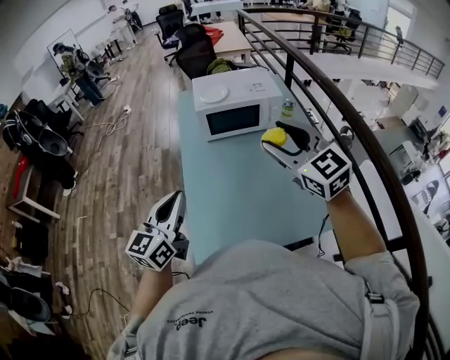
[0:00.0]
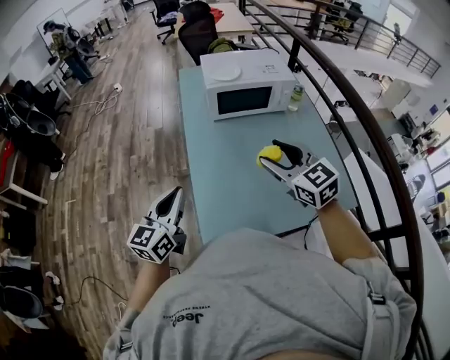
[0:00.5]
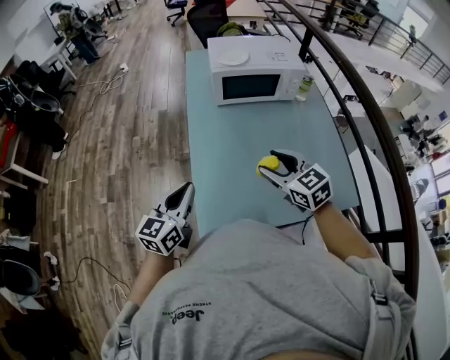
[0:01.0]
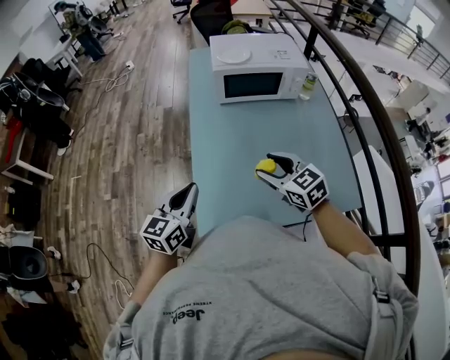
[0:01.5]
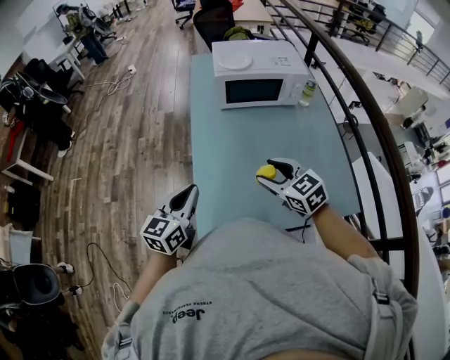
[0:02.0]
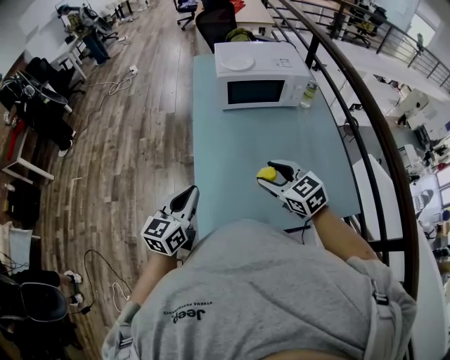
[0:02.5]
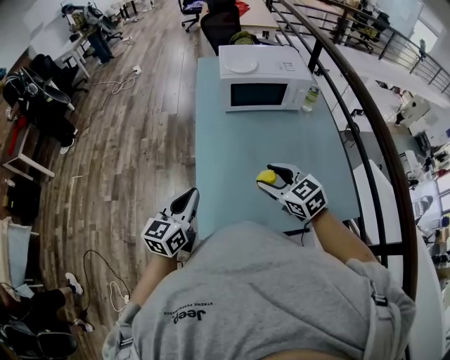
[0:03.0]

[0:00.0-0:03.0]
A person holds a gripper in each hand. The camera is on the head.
0:00.0 to 0:01.5: The right gripper shifts roughly 25 cm downward and to the left, and changes its angle by some 30 degrees; the left gripper travels downward by some 10 cm.
0:01.5 to 0:03.0: There are only small adjustments of the grippers.

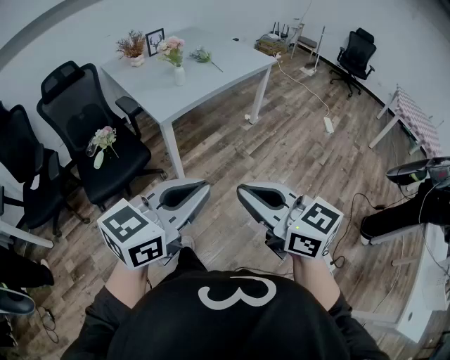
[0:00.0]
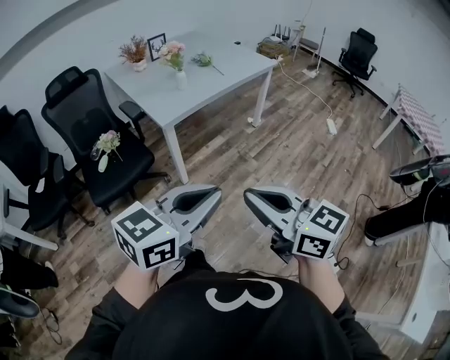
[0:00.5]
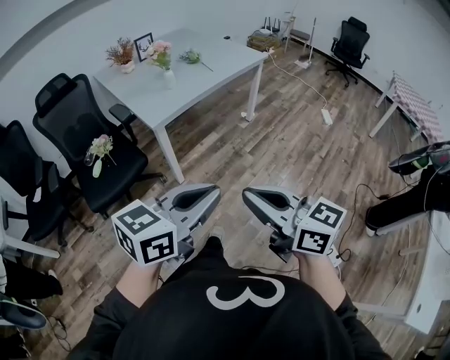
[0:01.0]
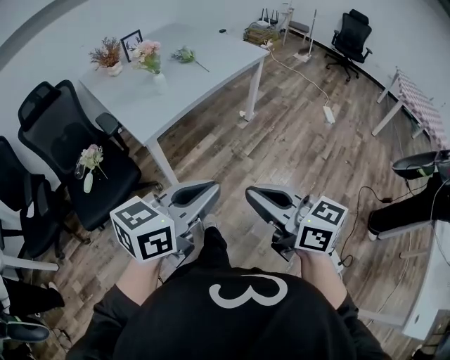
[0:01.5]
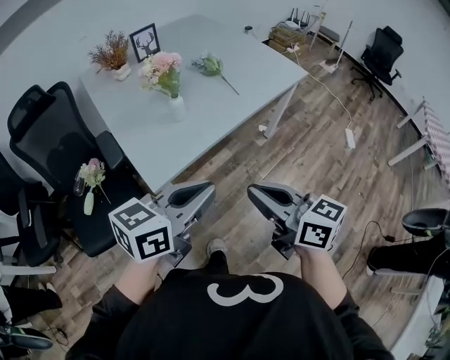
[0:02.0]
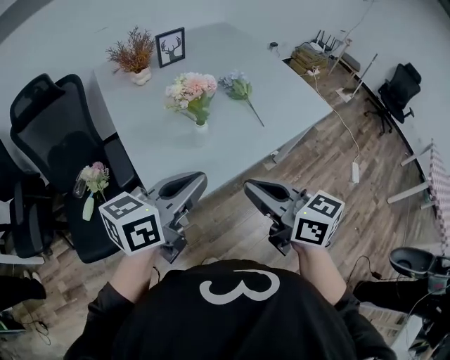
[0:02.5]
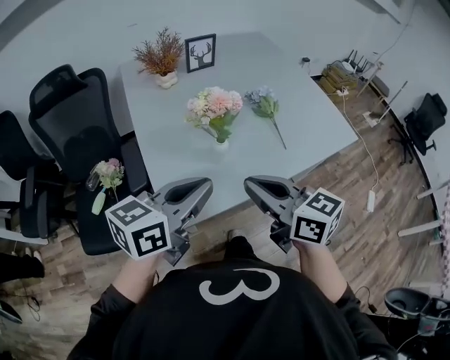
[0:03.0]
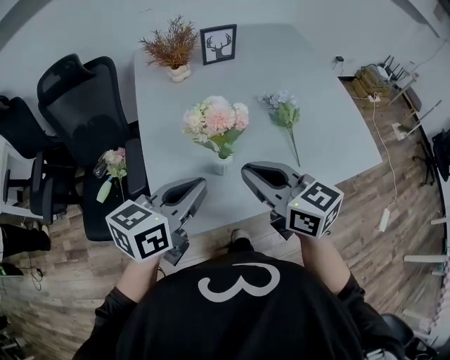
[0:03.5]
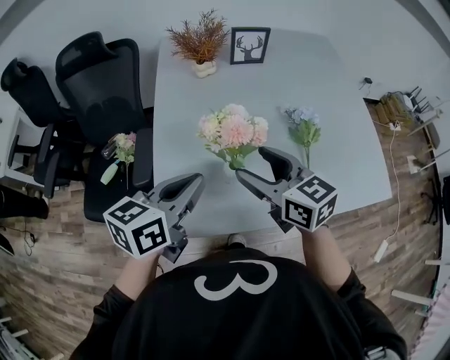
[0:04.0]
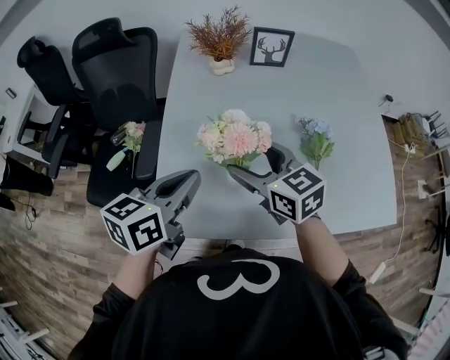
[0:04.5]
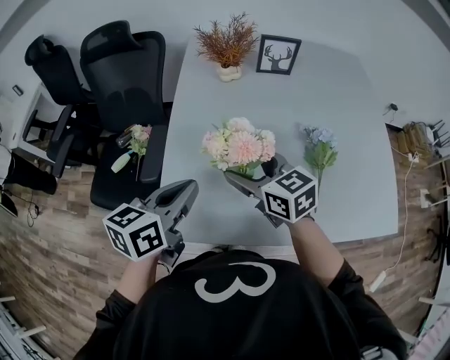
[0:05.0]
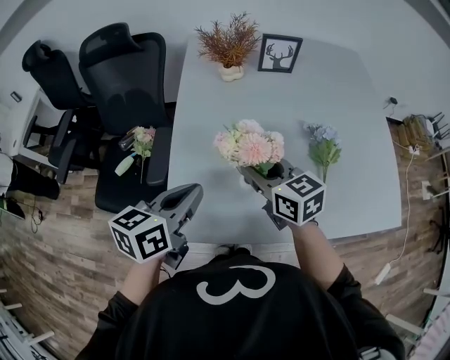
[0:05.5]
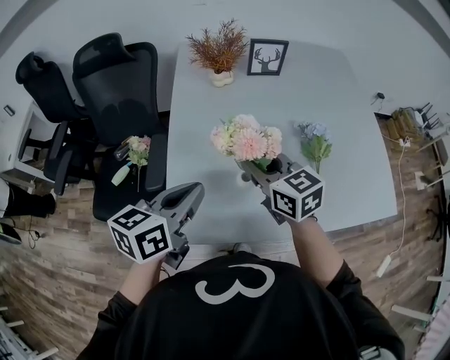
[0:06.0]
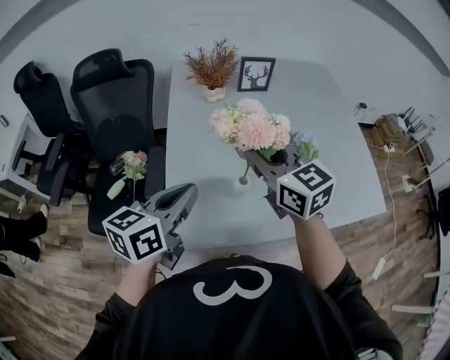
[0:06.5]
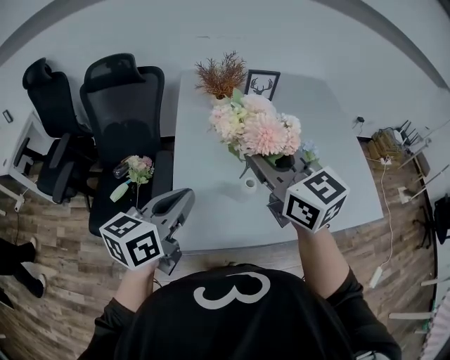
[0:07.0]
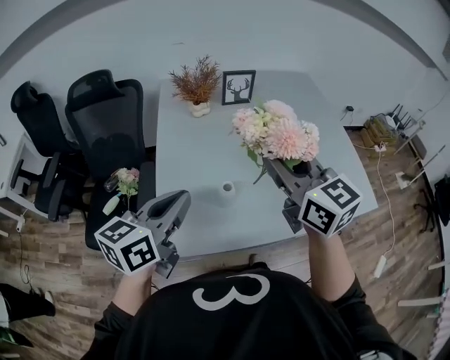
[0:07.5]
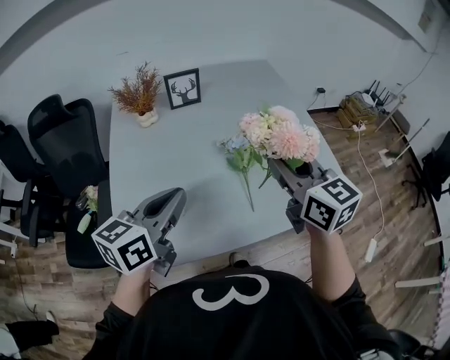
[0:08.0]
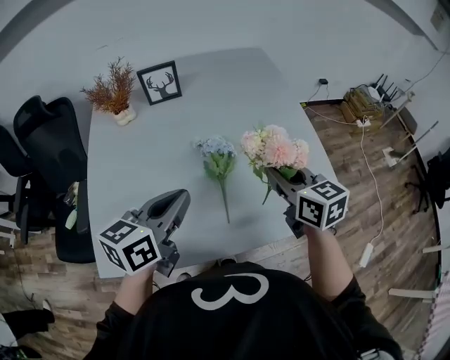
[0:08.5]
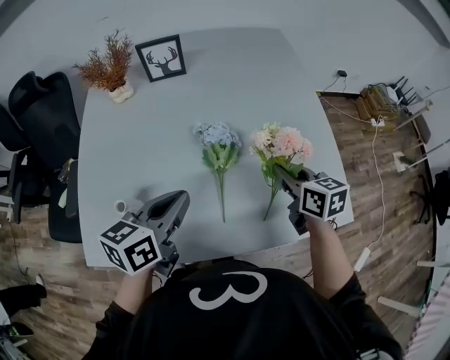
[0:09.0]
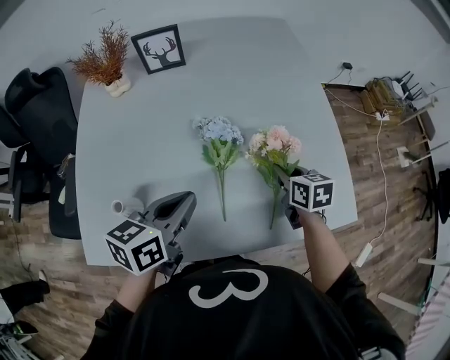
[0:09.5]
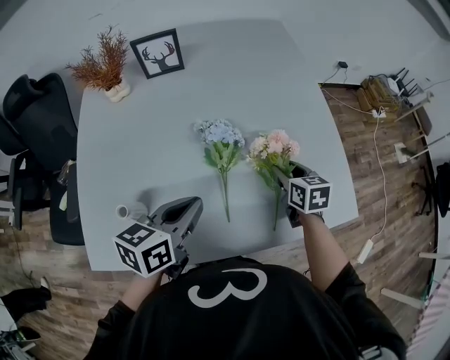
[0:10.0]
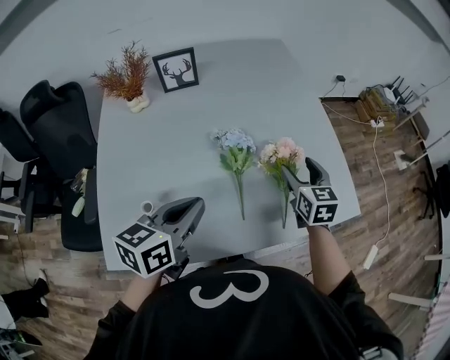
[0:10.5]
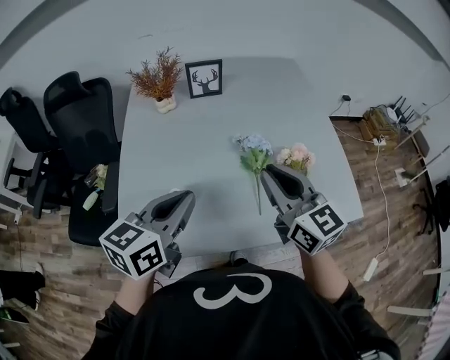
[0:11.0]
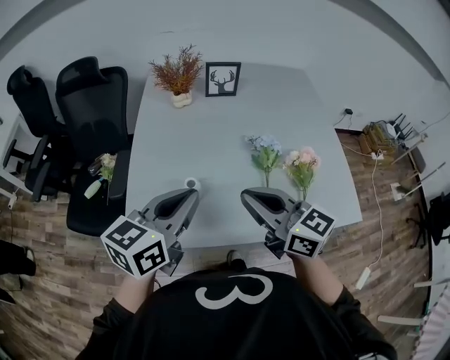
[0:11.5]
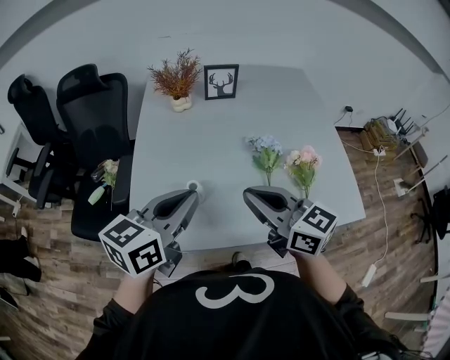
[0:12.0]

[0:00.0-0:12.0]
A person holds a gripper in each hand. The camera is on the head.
0:00.0 to 0:02.0: The pair of grippers is taken forward, roughly 40 cm.
0:02.0 to 0:04.0: The right gripper changes place by roughly 40 cm, turns by some 40 degrees, and opens its fingers. The left gripper ends up roughly 30 cm from where it was, and changes its angle by roughly 50 degrees.
0:04.0 to 0:06.0: The right gripper changes place by approximately 5 cm, and closes up.
0:06.0 to 0:08.0: The right gripper moves to the right and upward, approximately 30 cm, and swivels roughly 20 degrees; the left gripper heads to the right, covering approximately 15 cm.
0:08.0 to 0:10.0: The right gripper heads downward, to the right and forward, covering approximately 35 cm, and points its fingers about 30 degrees further downward. Meanwhile the left gripper moves downward, to the right and forward, roughly 20 cm.
0:10.0 to 0:12.0: The right gripper shifts by approximately 40 cm, tips its fingers upward by roughly 40 degrees, and closes up. The left gripper ends up roughly 25 cm from where it was.

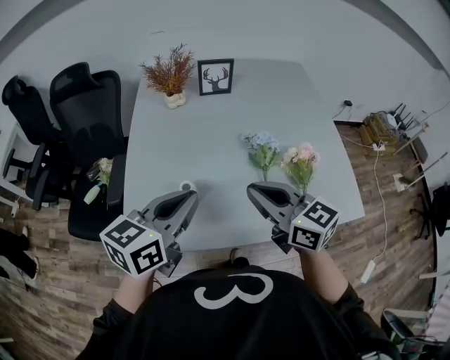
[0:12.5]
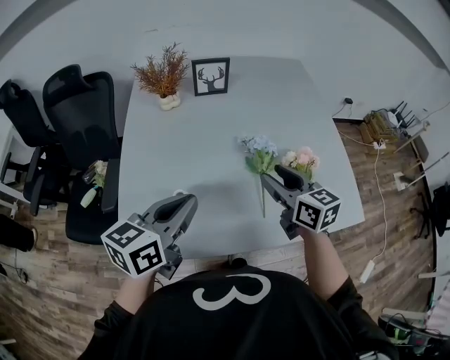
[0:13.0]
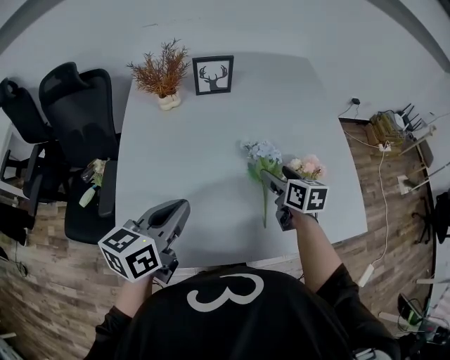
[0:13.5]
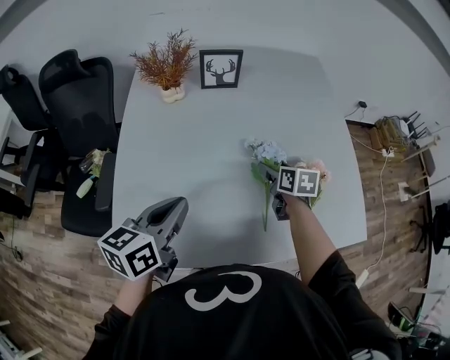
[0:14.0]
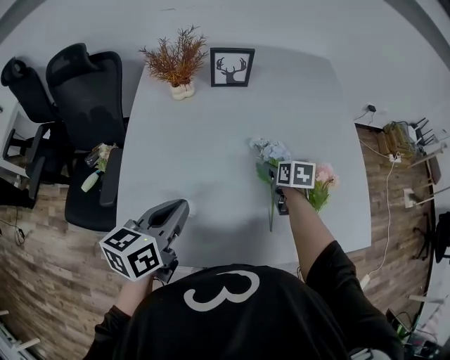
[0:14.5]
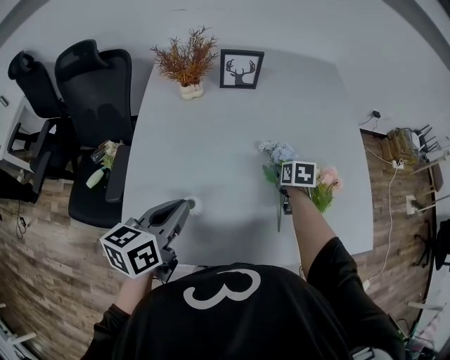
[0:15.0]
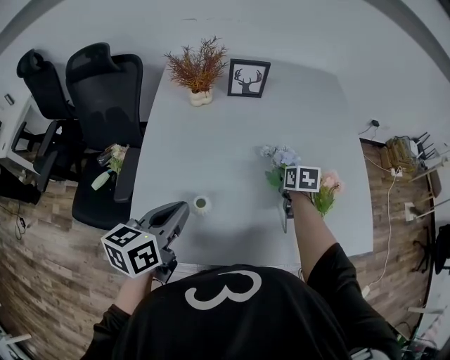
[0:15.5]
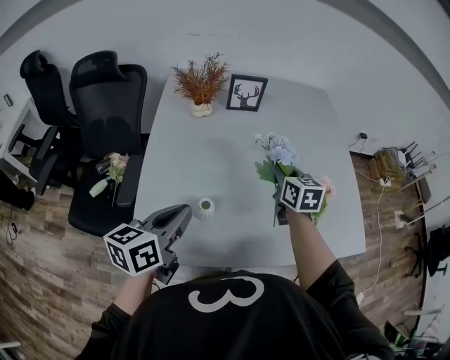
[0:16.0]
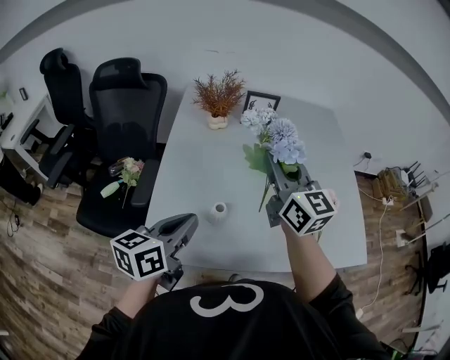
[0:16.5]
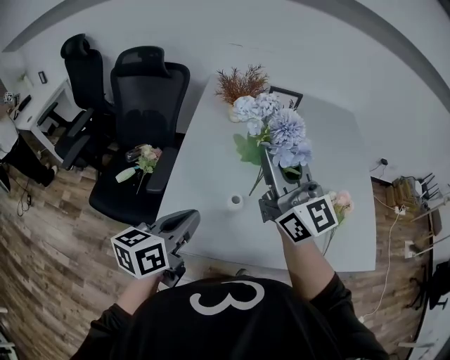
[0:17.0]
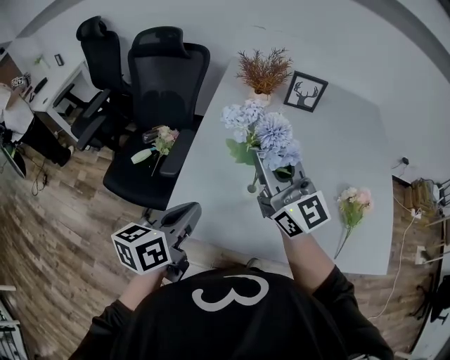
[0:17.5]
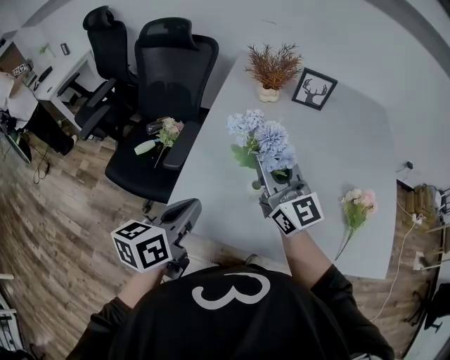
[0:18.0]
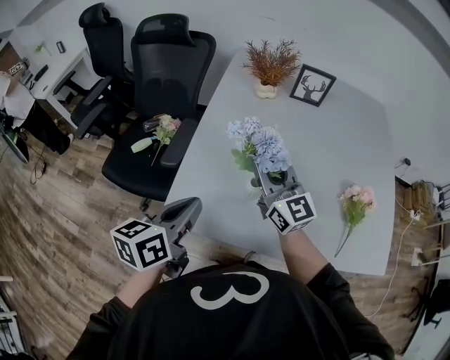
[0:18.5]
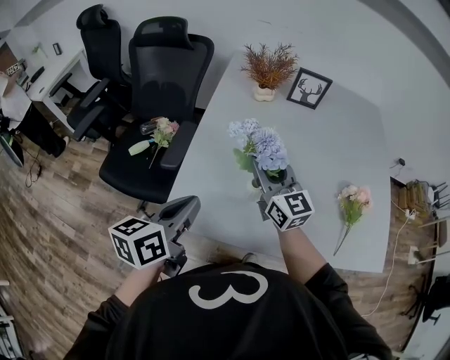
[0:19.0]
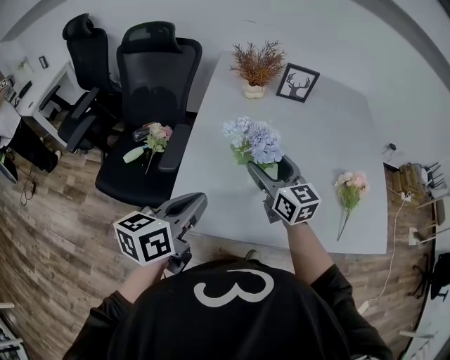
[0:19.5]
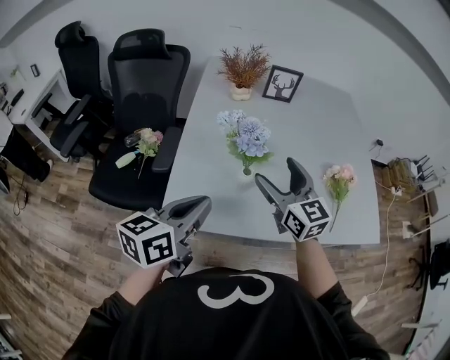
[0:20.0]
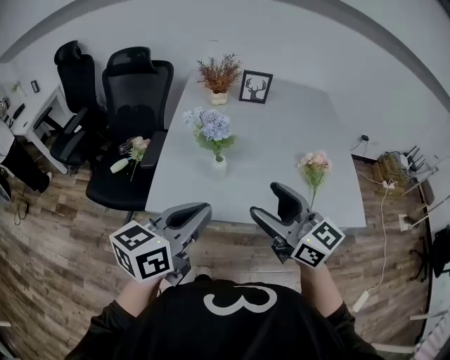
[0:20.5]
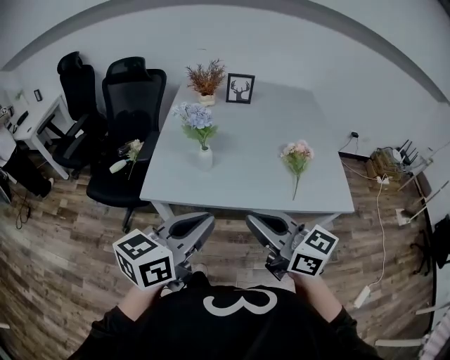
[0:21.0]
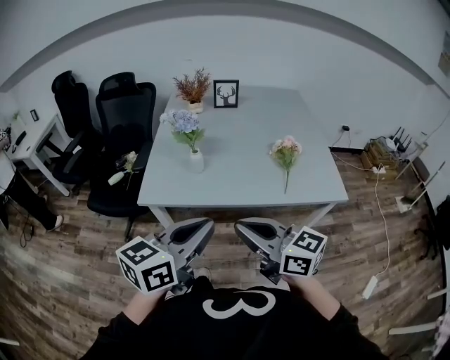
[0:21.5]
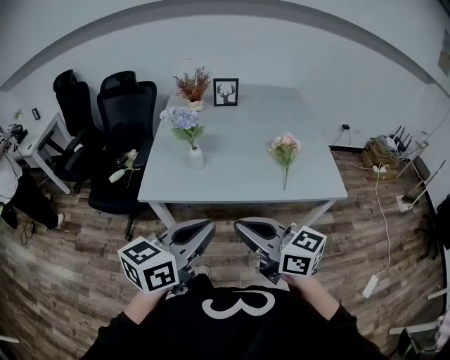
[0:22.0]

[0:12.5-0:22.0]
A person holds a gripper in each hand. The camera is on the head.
0:12.5 to 0:14.5: The left gripper travels downward and forward by about 10 cm; the right gripper heads downward, forward and to the right, covering some 35 cm, tilts its fingers about 40 degrees downward, and opens up.
0:14.5 to 0:16.5: The left gripper travels backward and to the left by some 10 cm; the right gripper is displaced upward and to the left by some 40 cm, angles its fingers upward, by roughly 60 degrees, and closes its fingers.
0:16.5 to 0:18.0: The right gripper moves to the left and downward, roughly 15 cm, and turns by roughly 20 degrees, while the left gripper moves to the left, roughly 5 cm.
0:18.0 to 0:20.0: The right gripper heads to the right and backward, covering roughly 10 cm, changes its angle by roughly 20 degrees, and opens.
0:20.0 to 0:22.0: The left gripper goes about 30 cm backward and to the right. Meanwhile the right gripper moves backward, roughly 35 cm, swivels approximately 30 degrees, and closes.

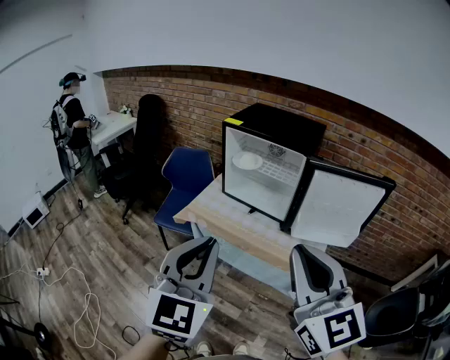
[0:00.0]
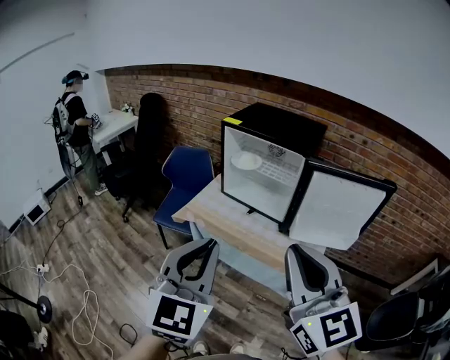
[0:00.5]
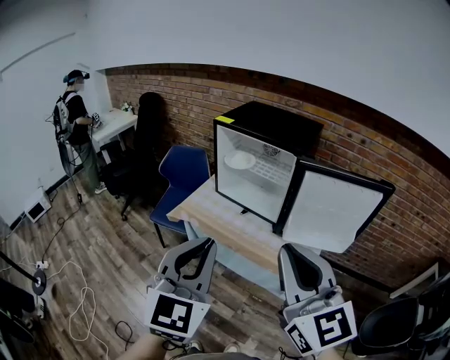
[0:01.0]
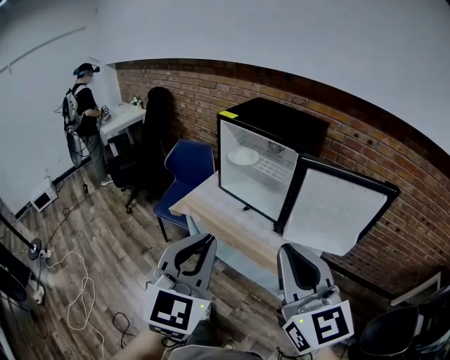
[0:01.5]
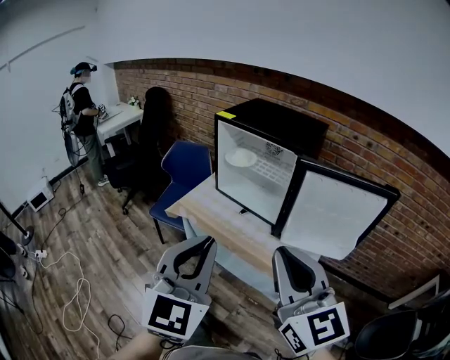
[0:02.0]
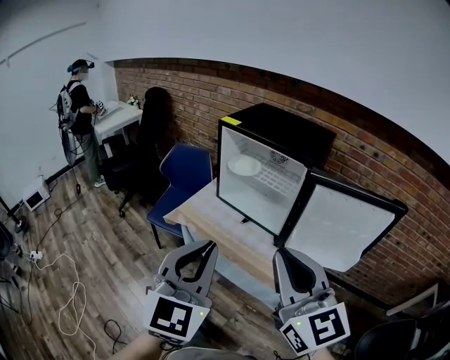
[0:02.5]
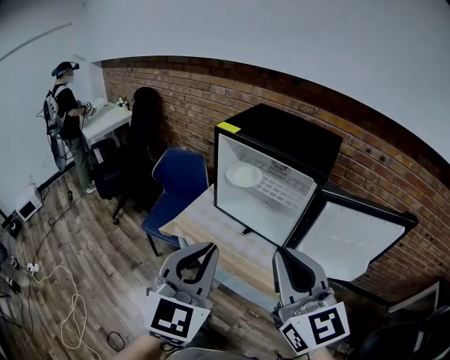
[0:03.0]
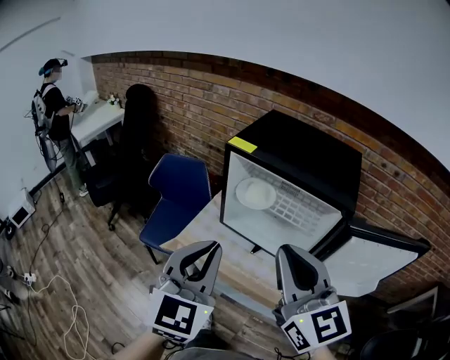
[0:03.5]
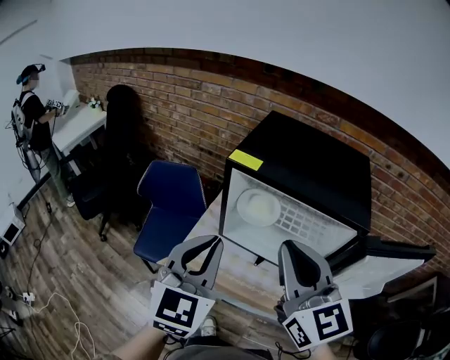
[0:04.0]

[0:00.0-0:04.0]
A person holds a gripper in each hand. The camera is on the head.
0:00.0 to 0:02.0: The left gripper heads to the right, covering some 10 cm, while the right gripper heads to the right and downward, covering some 10 cm.
0:02.0 to 0:04.0: The grippers both shift forward by roughly 35 cm.
